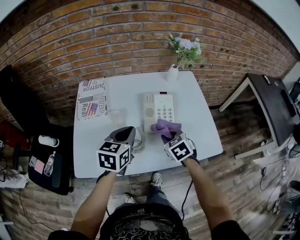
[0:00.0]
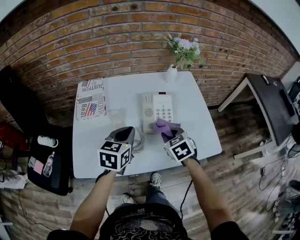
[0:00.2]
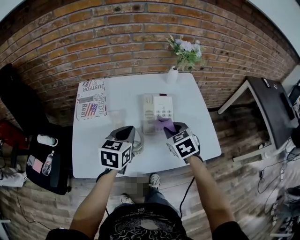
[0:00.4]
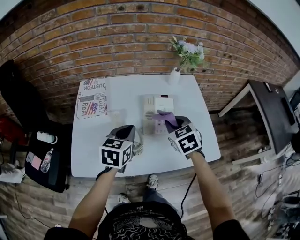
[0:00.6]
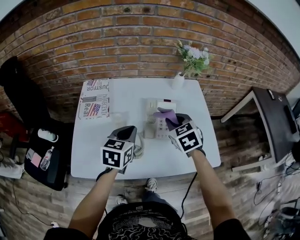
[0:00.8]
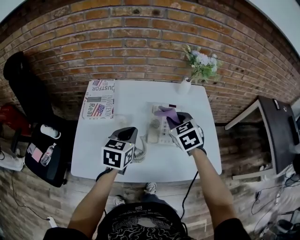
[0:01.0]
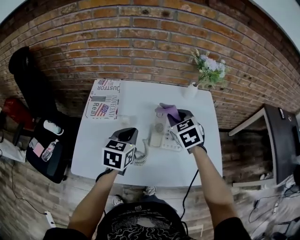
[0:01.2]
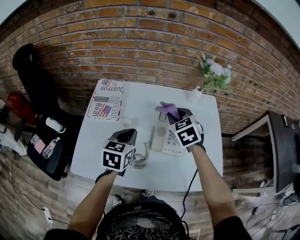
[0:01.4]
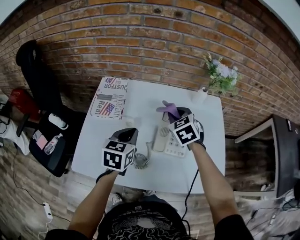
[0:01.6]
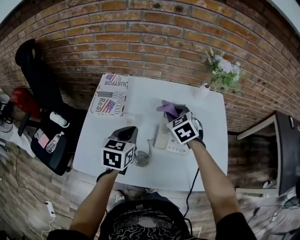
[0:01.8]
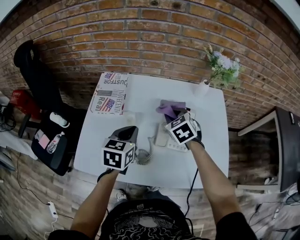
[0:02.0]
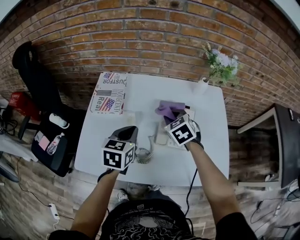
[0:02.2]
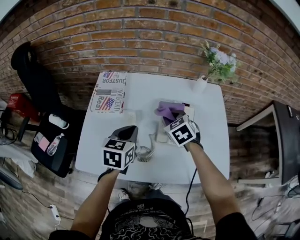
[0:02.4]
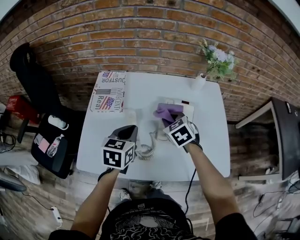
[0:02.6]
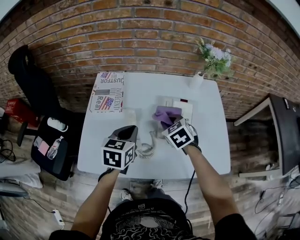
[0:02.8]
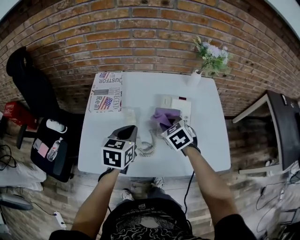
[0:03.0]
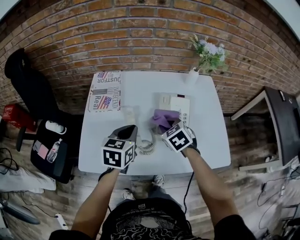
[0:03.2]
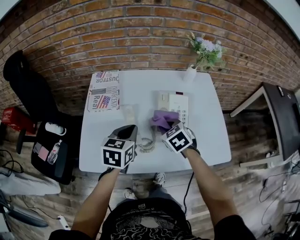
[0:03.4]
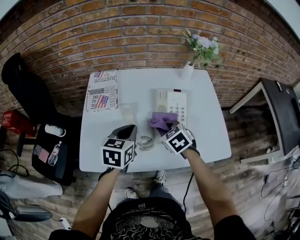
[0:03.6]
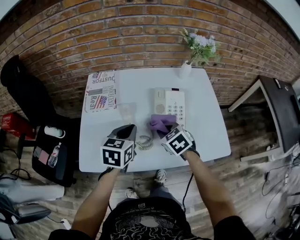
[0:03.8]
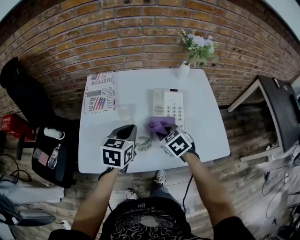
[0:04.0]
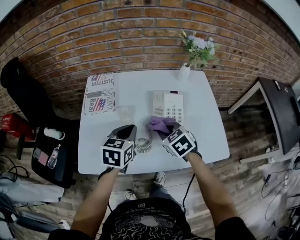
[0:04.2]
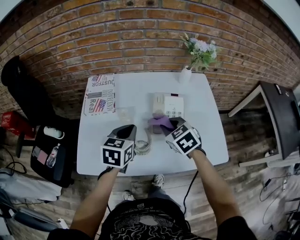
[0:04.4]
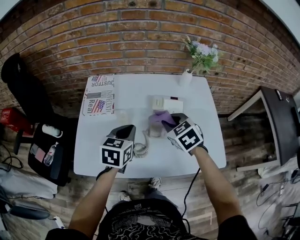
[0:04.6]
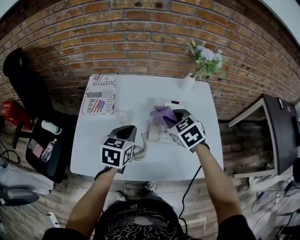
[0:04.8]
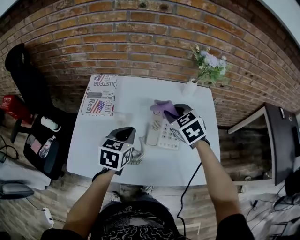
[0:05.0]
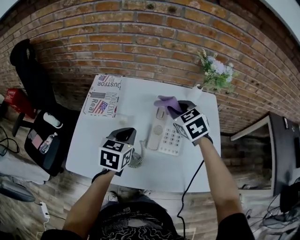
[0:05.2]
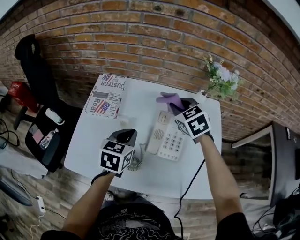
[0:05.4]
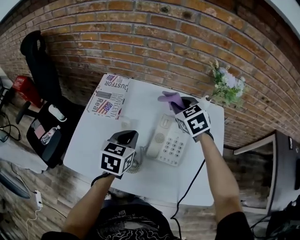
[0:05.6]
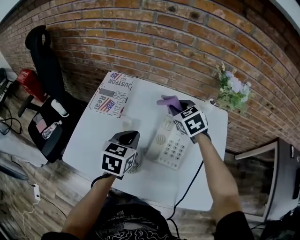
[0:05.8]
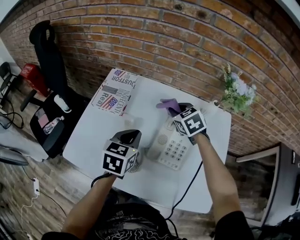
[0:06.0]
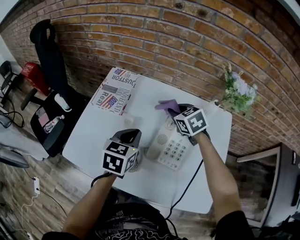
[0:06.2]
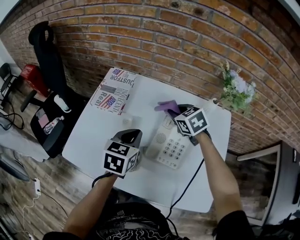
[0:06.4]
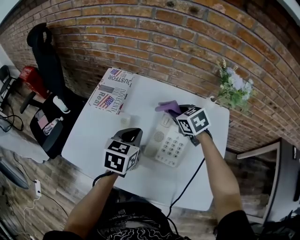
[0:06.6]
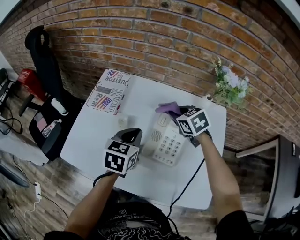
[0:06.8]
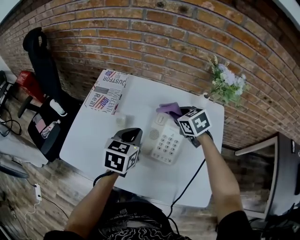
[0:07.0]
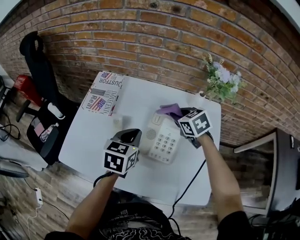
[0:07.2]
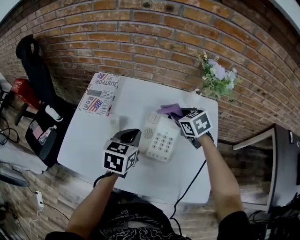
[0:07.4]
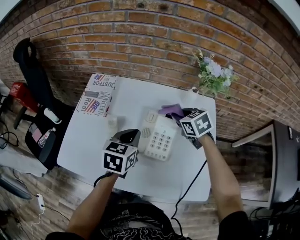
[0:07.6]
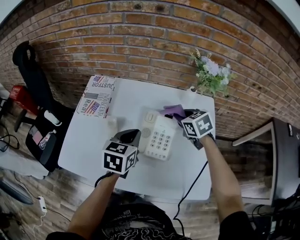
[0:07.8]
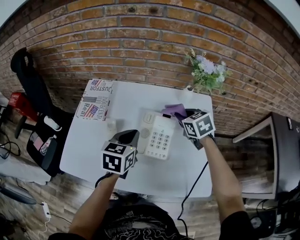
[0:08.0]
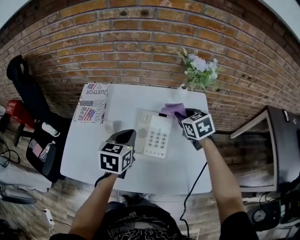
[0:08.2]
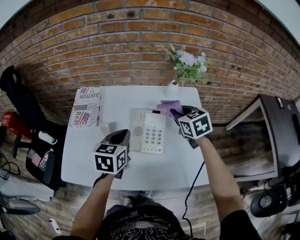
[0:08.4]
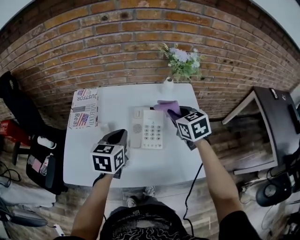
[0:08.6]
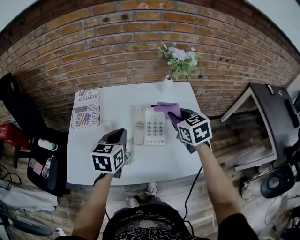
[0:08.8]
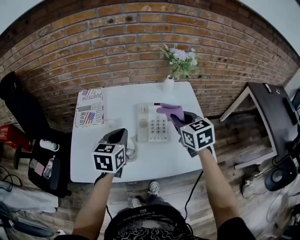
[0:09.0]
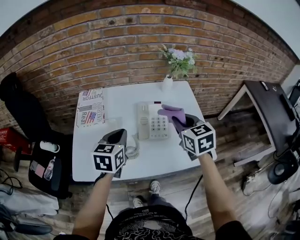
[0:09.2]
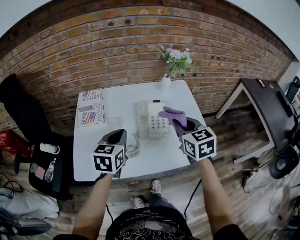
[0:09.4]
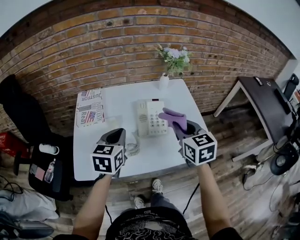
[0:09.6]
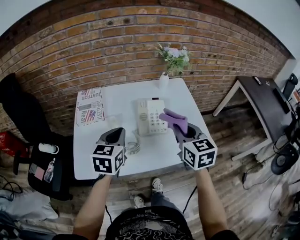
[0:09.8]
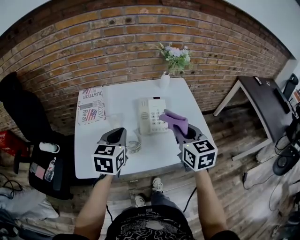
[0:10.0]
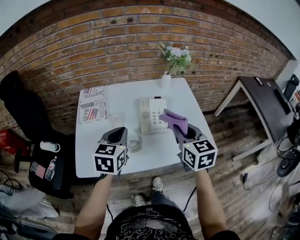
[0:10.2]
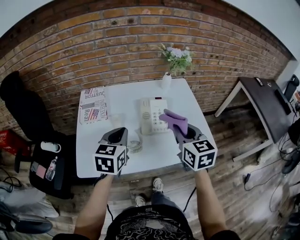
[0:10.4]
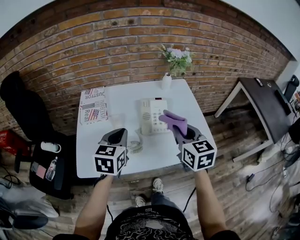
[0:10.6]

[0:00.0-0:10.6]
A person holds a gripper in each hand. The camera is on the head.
0:00.0 to 0:01.6: The left gripper shifts roughly 5 cm forward; the right gripper travels forward and upward by approximately 20 cm.
0:01.6 to 0:03.0: The right gripper travels backward and downward by approximately 10 cm.
0:03.0 to 0:04.6: The right gripper goes roughly 5 cm upward.
0:04.6 to 0:06.0: The right gripper travels forward by approximately 20 cm. The left gripper ends up roughly 5 cm from where it was.
0:06.0 to 0:07.6: The left gripper heads to the right, covering about 5 cm; the right gripper goes roughly 10 cm to the right and backward.
0:07.6 to 0:09.0: The right gripper shifts roughly 20 cm backward and upward, and changes its angle by roughly 30 degrees, while the left gripper goes roughly 10 cm to the left and backward.
0:09.0 to 0:10.6: The right gripper moves backward, about 10 cm. Meanwhile the left gripper is displaced backward by some 5 cm.

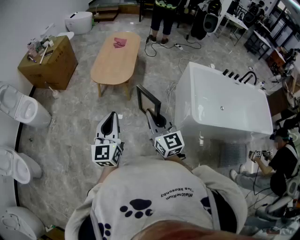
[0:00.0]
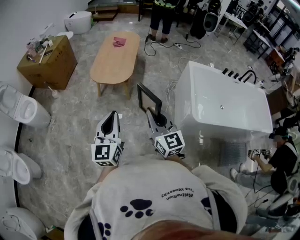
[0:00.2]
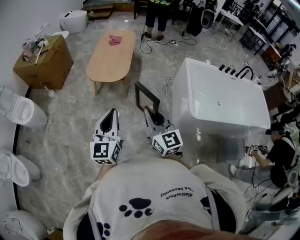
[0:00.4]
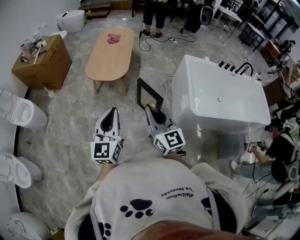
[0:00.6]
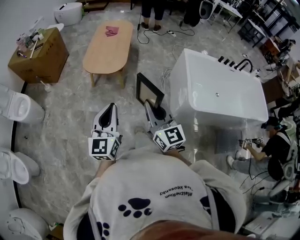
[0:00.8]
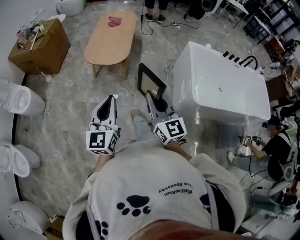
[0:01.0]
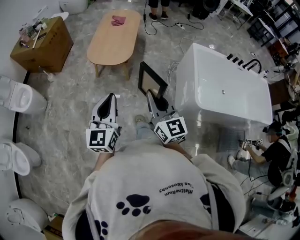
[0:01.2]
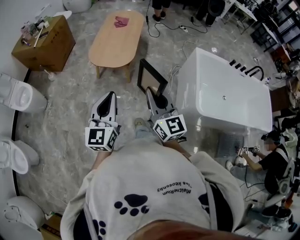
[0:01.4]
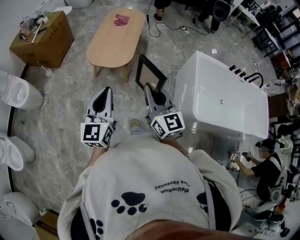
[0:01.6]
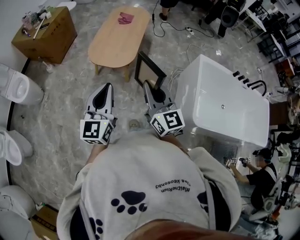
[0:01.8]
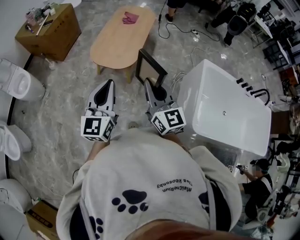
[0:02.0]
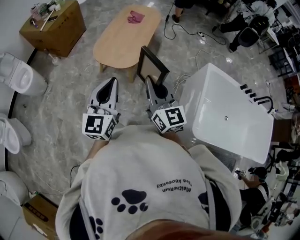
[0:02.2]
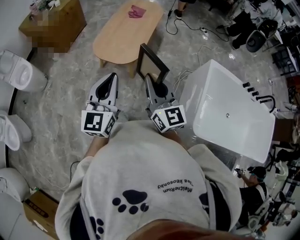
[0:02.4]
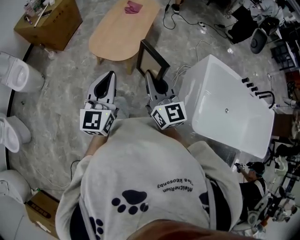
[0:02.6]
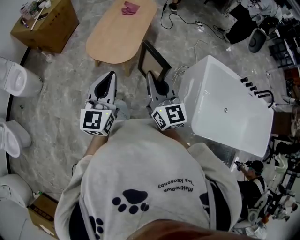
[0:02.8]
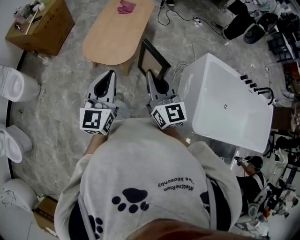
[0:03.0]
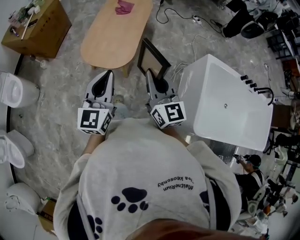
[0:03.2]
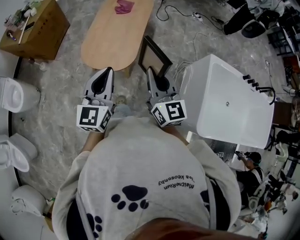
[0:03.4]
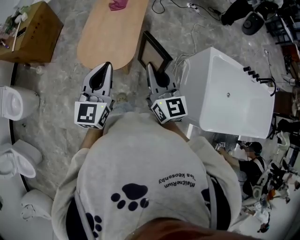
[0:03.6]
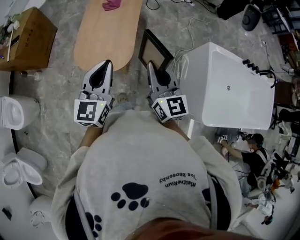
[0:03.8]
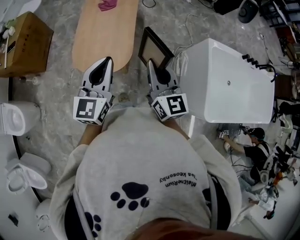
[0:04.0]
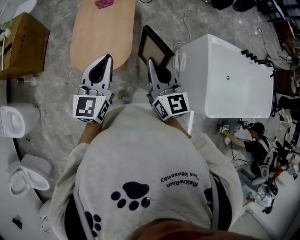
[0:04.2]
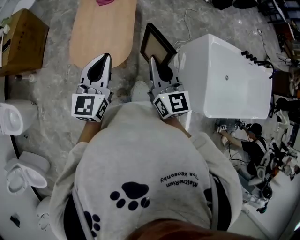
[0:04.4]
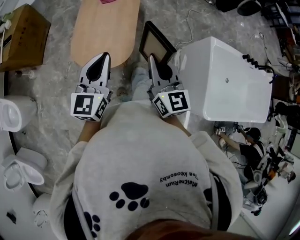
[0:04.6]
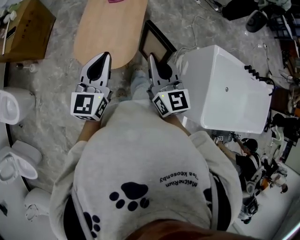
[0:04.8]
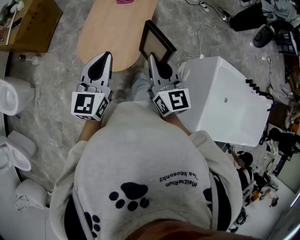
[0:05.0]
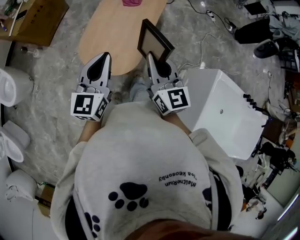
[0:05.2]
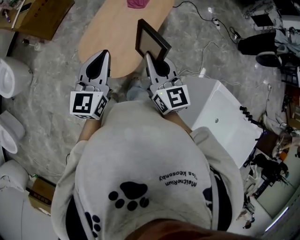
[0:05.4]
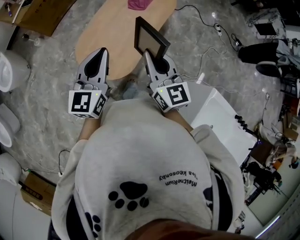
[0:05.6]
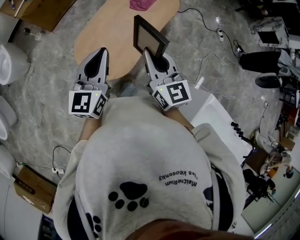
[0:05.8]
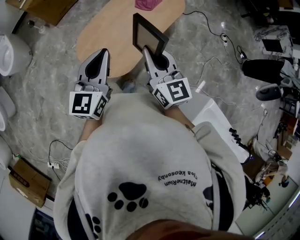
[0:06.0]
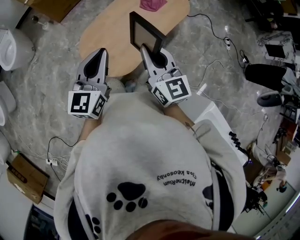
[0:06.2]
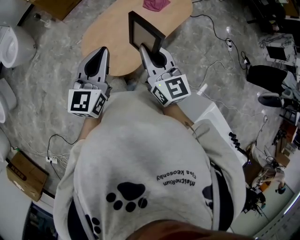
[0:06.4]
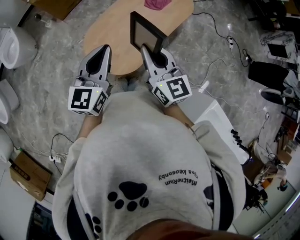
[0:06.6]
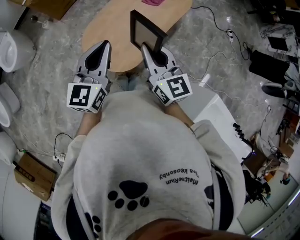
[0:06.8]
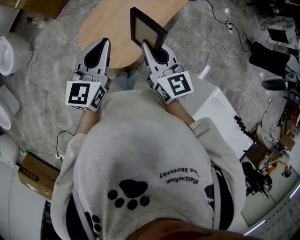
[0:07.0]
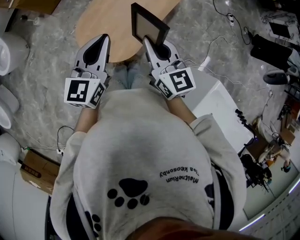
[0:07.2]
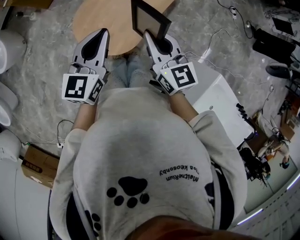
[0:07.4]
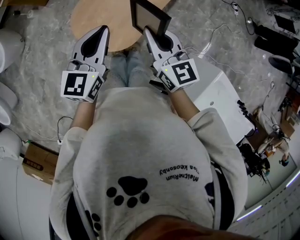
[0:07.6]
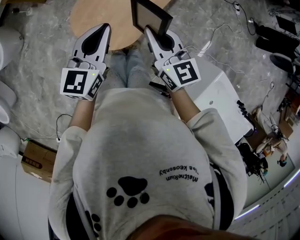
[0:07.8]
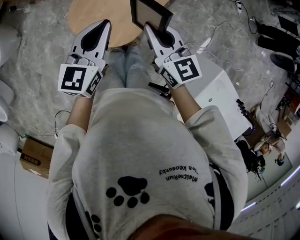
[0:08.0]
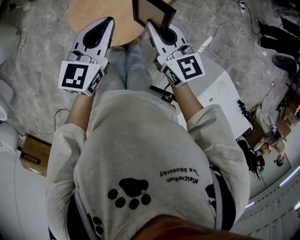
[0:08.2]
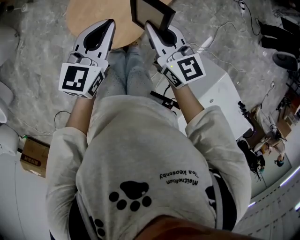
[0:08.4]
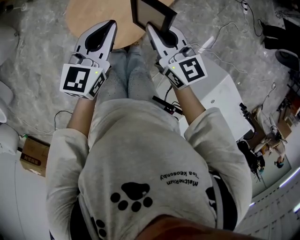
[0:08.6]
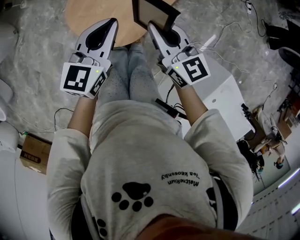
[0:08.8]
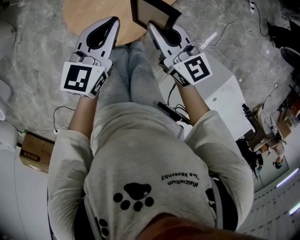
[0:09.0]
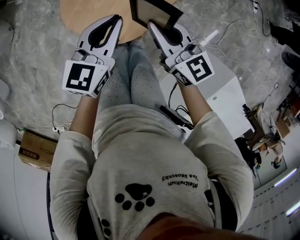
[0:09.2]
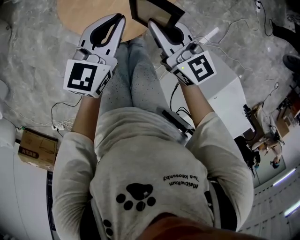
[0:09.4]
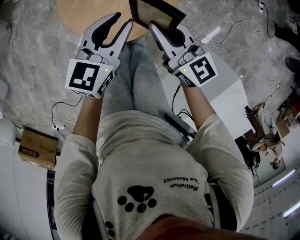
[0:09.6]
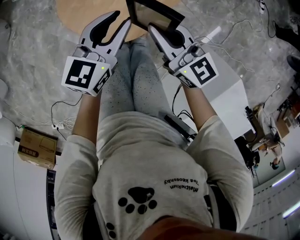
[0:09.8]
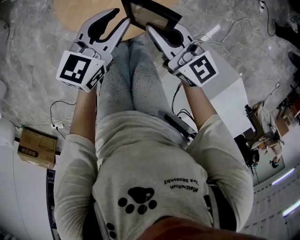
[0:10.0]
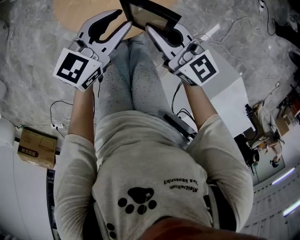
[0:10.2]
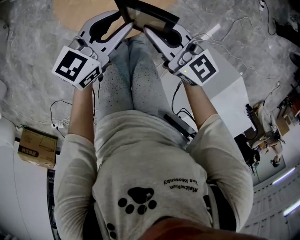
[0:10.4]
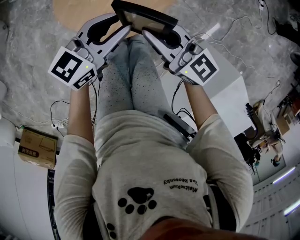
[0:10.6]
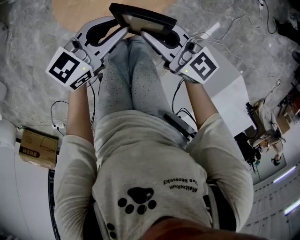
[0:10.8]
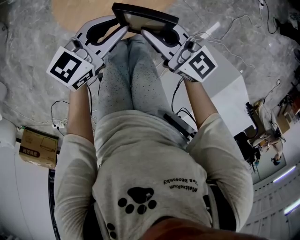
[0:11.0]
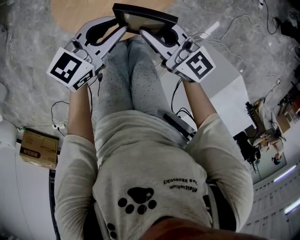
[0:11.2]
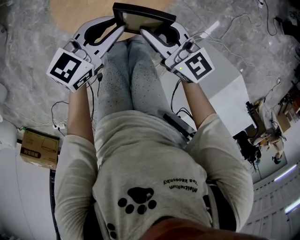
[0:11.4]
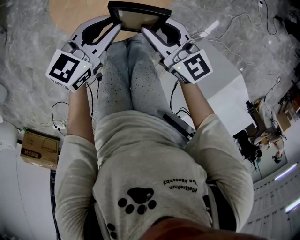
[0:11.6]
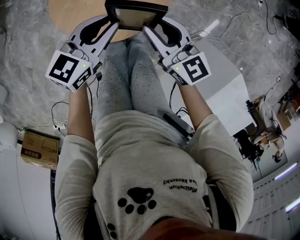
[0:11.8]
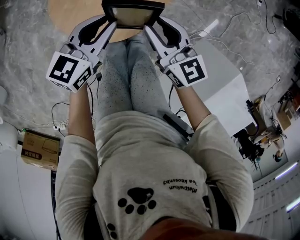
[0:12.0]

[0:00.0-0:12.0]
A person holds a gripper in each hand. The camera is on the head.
0:00.0 to 0:01.6: The two grippers go roughly 10 cm forward.
0:01.6 to 0:03.0: Both grippers move forward, some 20 cm.
0:03.0 to 0:04.4: The two grippers go some 15 cm forward.
0:04.4 to 0:06.0: The left gripper shifts by roughly 15 cm, and changes its angle by approximately 40 degrees. Meanwhile the right gripper changes place by about 25 cm, and turns by some 40 degrees.
0:06.0 to 0:07.6: The right gripper goes about 5 cm downward. Meanwhile the left gripper changes place by about 5 cm.
0:07.6 to 0:09.0: Both grippers travel together downward, some 10 cm.
0:09.0 to 0:10.4: The grippers both shift downward by some 5 cm. The left gripper opens.
0:10.4 to 0:12.0: The right gripper opens up.

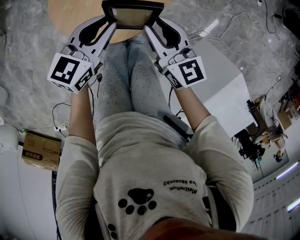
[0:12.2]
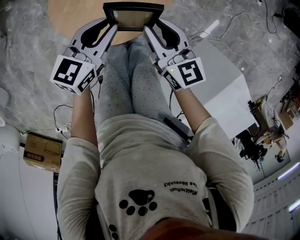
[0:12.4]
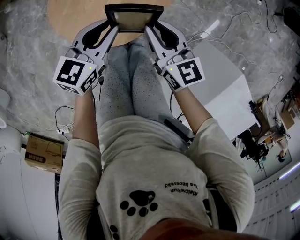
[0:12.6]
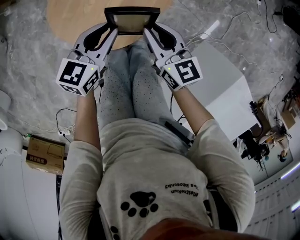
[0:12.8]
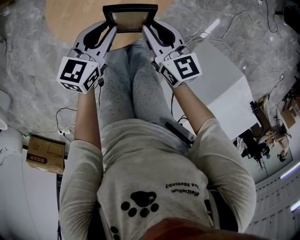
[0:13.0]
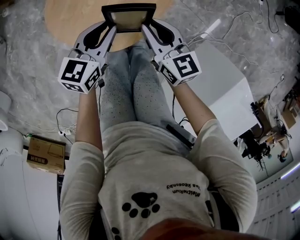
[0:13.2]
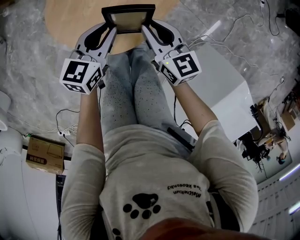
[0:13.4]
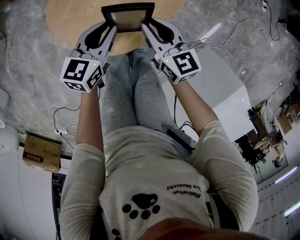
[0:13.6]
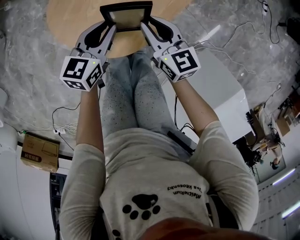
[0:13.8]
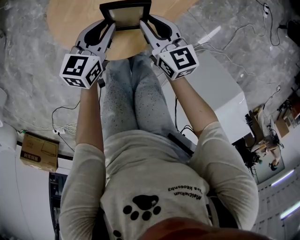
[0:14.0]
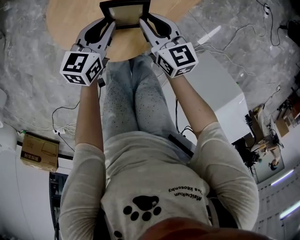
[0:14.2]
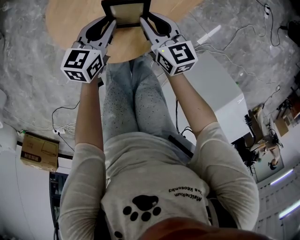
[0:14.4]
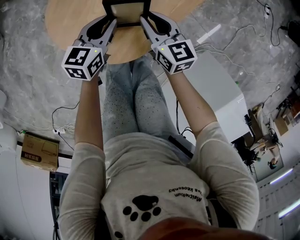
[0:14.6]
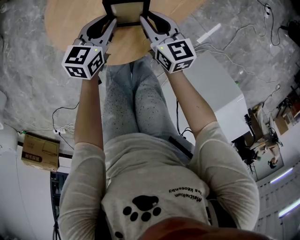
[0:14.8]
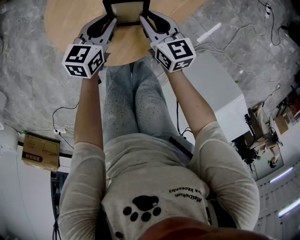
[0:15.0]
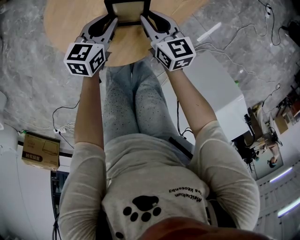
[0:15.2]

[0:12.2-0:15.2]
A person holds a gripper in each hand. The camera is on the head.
0:12.2 to 0:13.8: The left gripper shifts about 10 cm downward; the right gripper shifts roughly 10 cm downward and forward.
0:13.8 to 0:15.2: The grippers both shift downward by approximately 10 cm.
